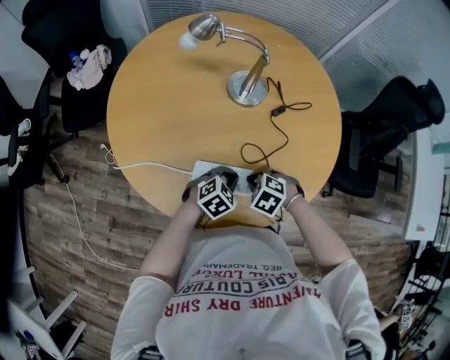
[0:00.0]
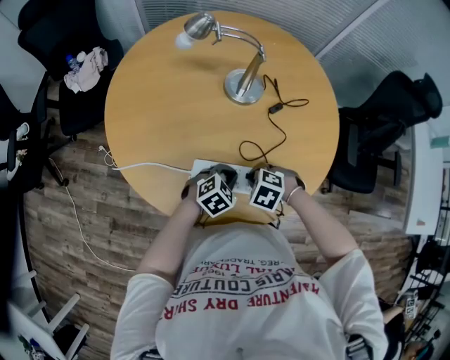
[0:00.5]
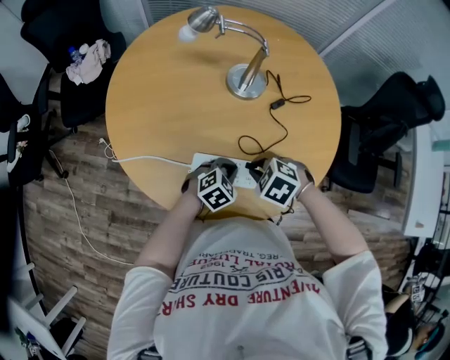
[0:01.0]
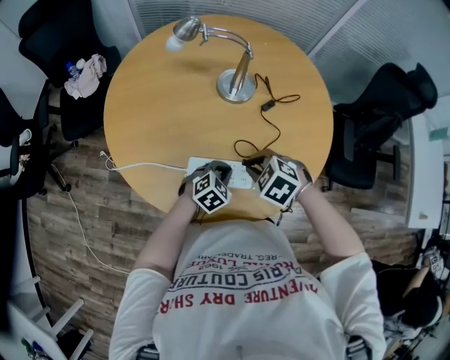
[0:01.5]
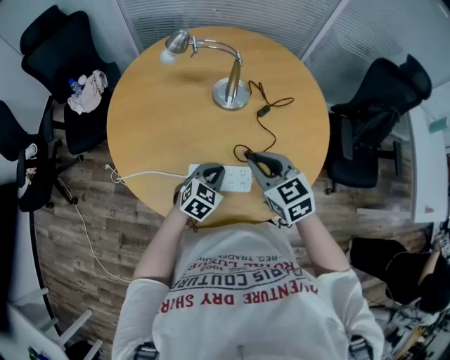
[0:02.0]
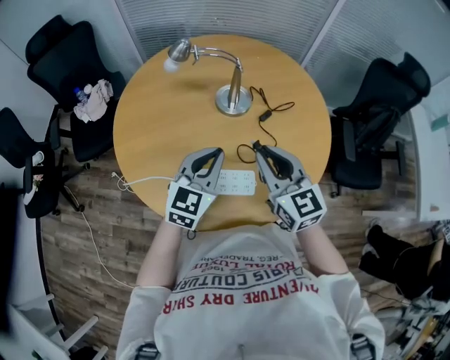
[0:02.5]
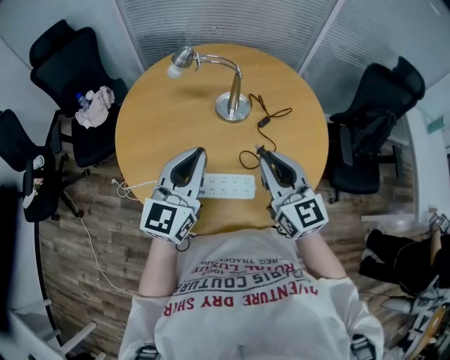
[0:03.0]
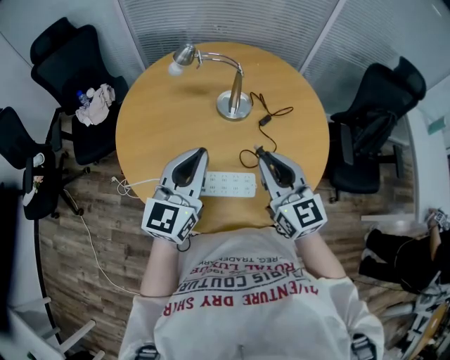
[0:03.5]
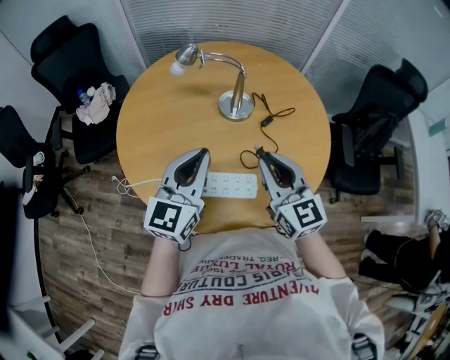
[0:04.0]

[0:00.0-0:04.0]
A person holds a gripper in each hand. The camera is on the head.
0:00.0 to 0:02.0: The right gripper is displaced upward by some 20 cm, and tips its fingers upward by about 40 degrees. The left gripper moves upward, approximately 5 cm.
0:02.0 to 0:04.0: The right gripper is displaced upward by approximately 10 cm, and turns by approximately 30 degrees, while the left gripper goes approximately 25 cm upward, and tilts its fingers approximately 40 degrees upward.

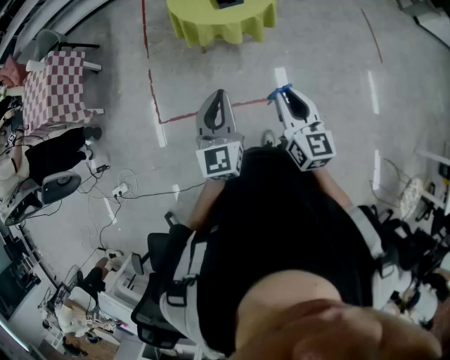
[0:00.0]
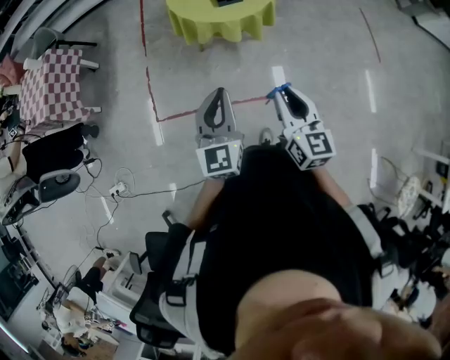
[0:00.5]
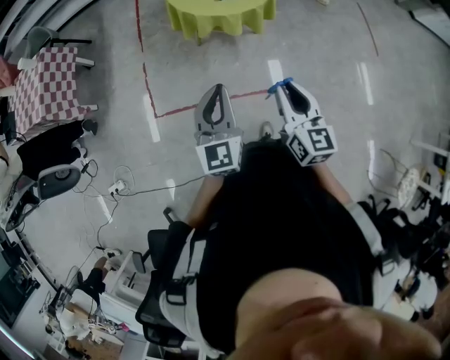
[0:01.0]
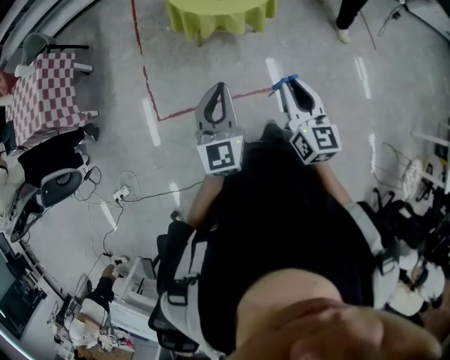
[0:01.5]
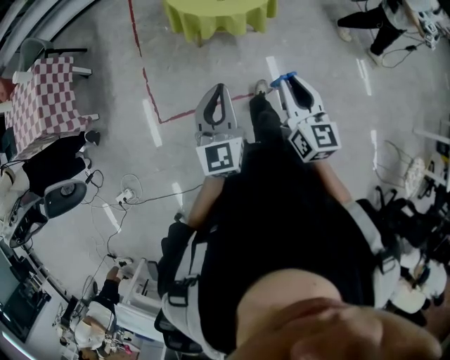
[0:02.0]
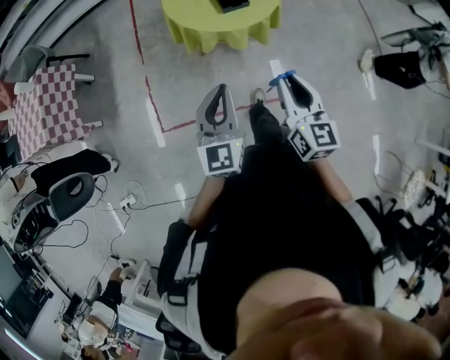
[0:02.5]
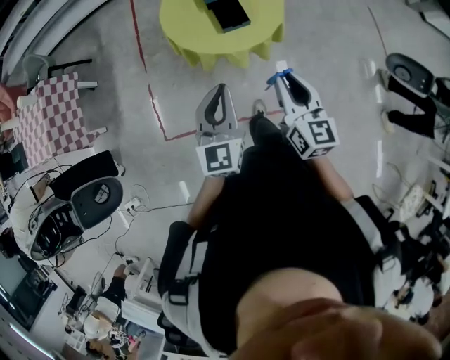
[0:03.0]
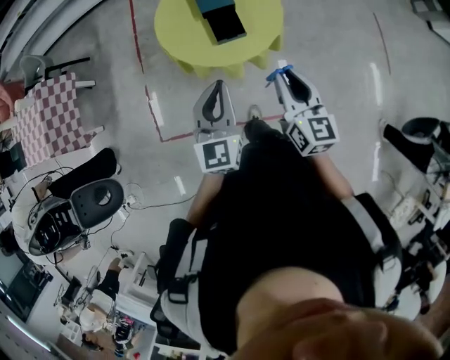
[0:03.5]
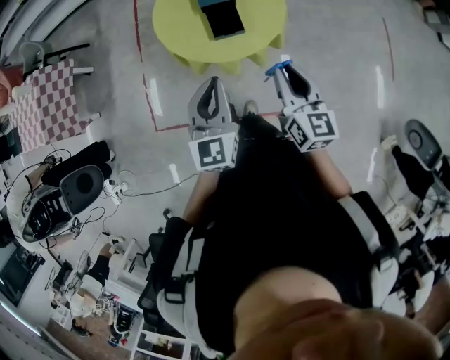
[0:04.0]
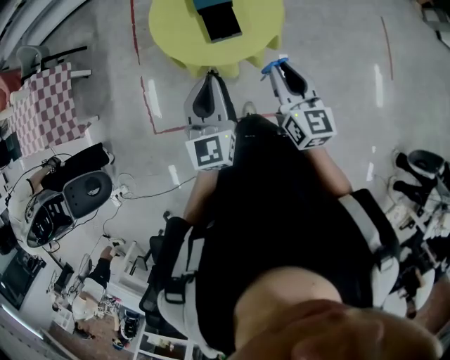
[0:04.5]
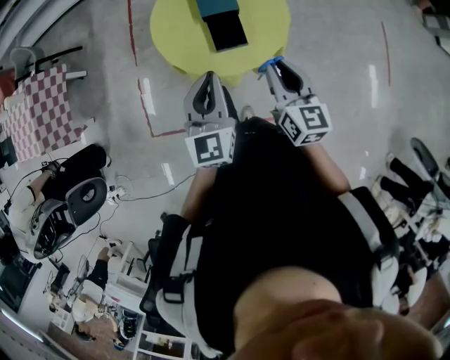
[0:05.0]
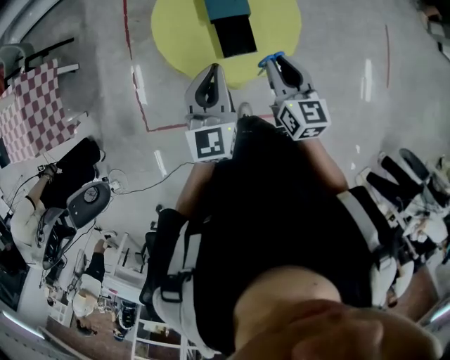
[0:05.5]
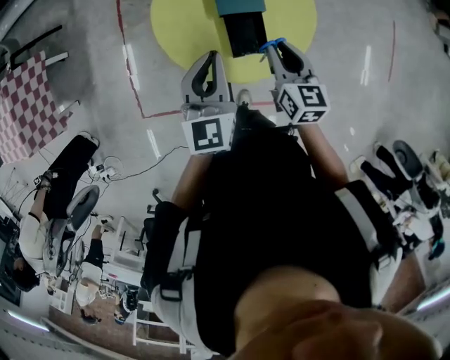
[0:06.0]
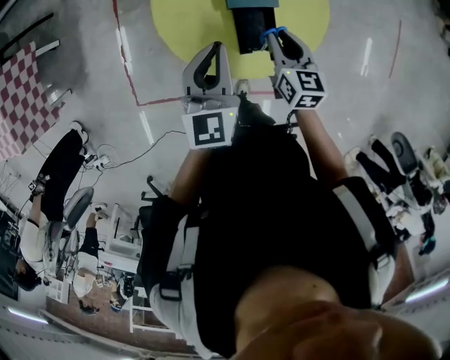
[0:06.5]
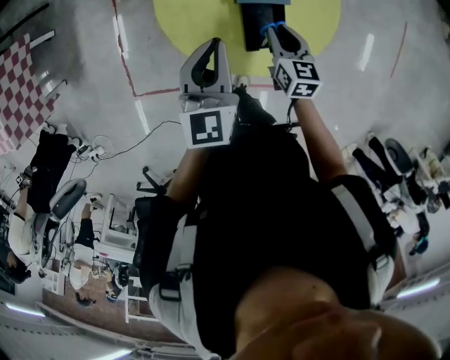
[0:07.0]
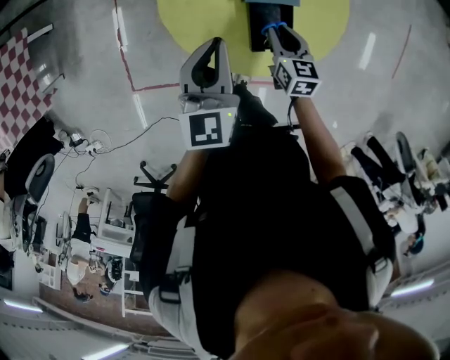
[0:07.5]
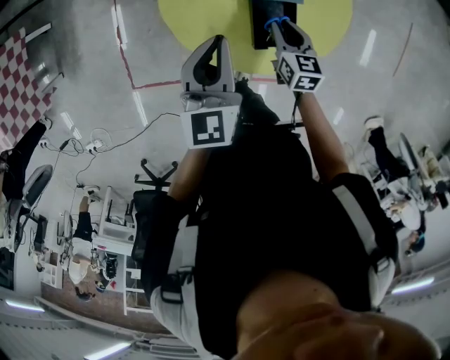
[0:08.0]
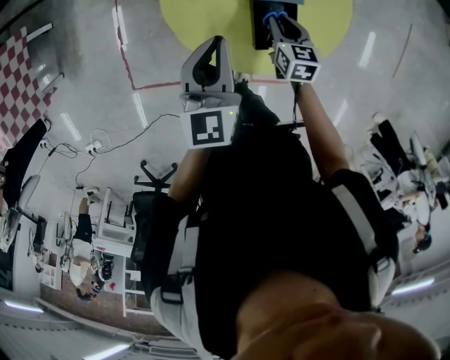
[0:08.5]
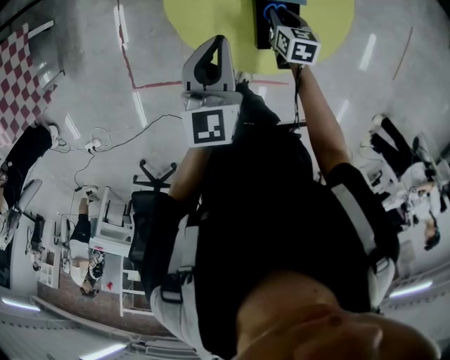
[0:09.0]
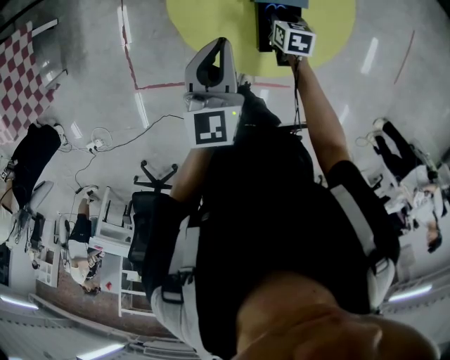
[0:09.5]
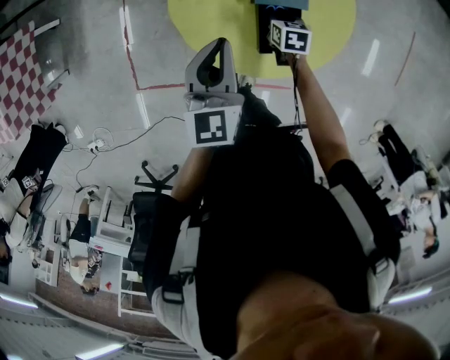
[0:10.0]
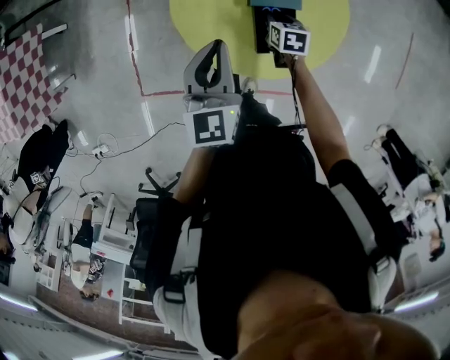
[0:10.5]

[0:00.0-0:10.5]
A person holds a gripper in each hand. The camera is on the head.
0:00.0 to 0:02.0: The grippers both shift to the left by roughly 10 cm.
0:02.0 to 0:04.0: The two grippers go roughly 40 cm forward and to the right.
0:04.0 to 0:06.5: The two grippers go approximately 35 cm forward and downward. The right gripper swivels approximately 20 degrees.
0:06.5 to 0:08.5: The left gripper shifts by approximately 5 cm. Meanwhile the right gripper is displaced downward by approximately 10 cm.
0:08.5 to 0:10.5: The right gripper shifts by about 5 cm.

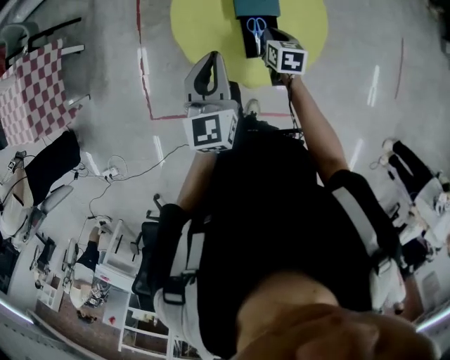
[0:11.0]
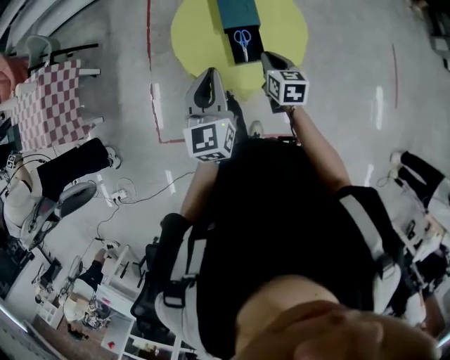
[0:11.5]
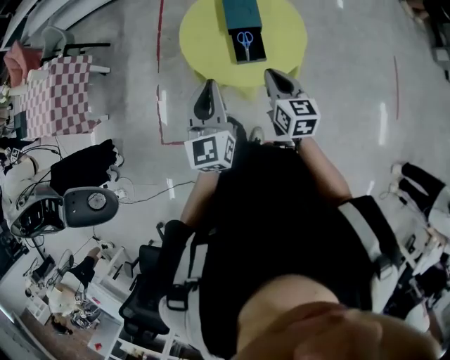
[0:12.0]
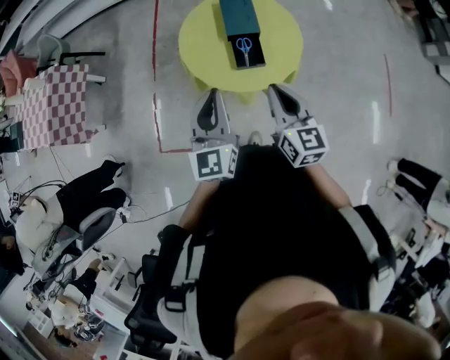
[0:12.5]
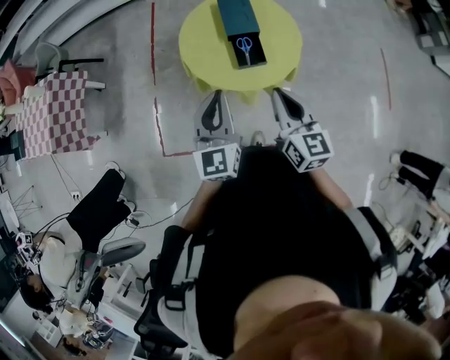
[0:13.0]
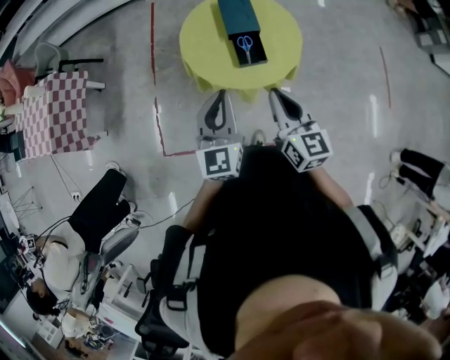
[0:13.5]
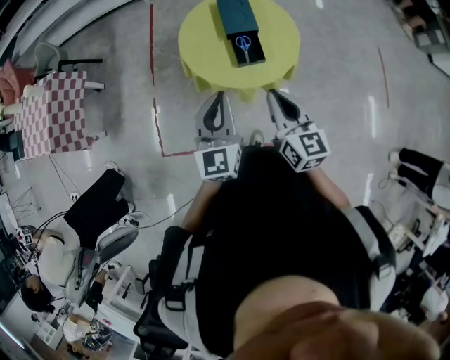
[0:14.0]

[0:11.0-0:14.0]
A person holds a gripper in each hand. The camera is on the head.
0:11.0 to 0:12.5: The right gripper is displaced upward and backward by approximately 40 cm, and tilts its fingers some 40 degrees upward; the left gripper travels backward and upward by about 25 cm.
0:12.5 to 0:14.0: The right gripper moves roughly 5 cm.

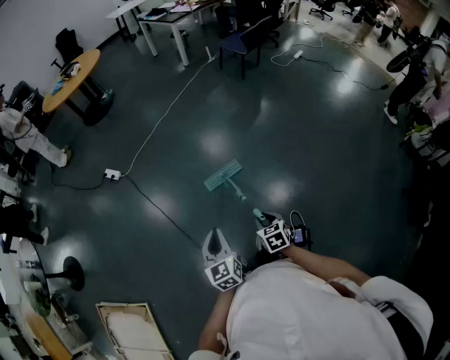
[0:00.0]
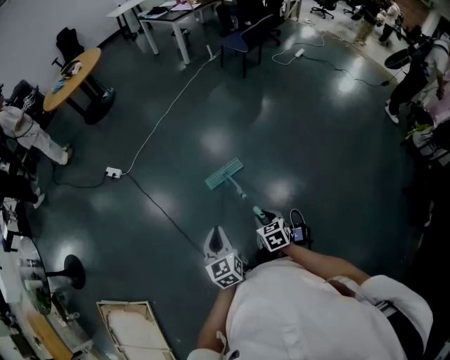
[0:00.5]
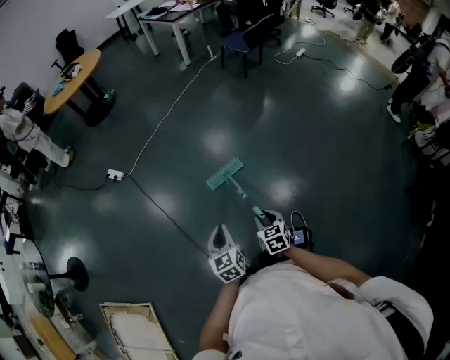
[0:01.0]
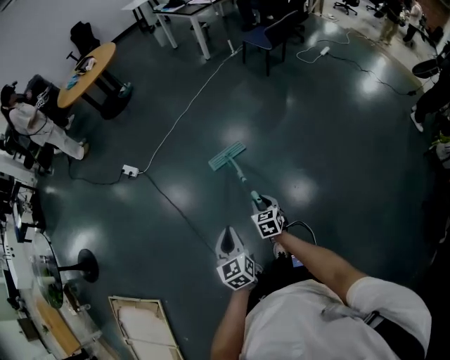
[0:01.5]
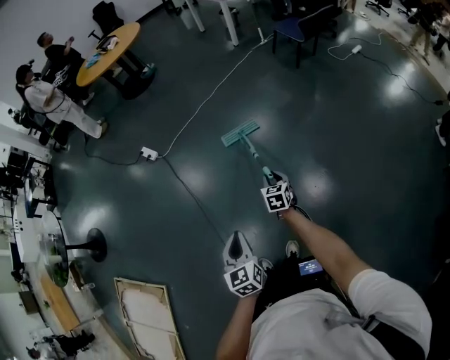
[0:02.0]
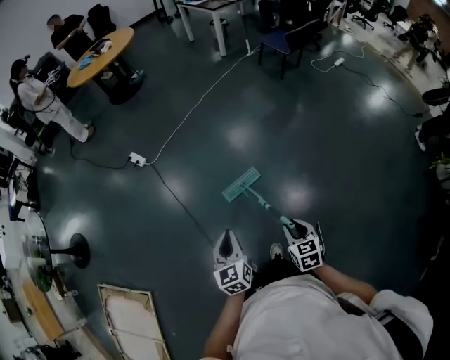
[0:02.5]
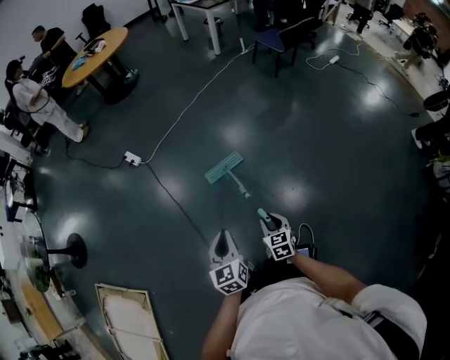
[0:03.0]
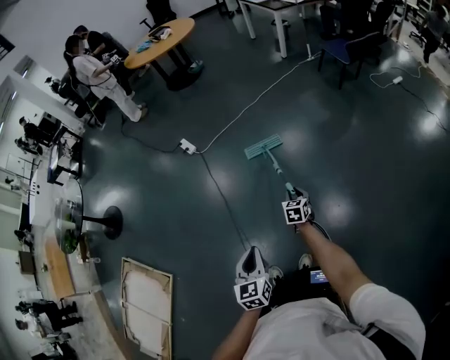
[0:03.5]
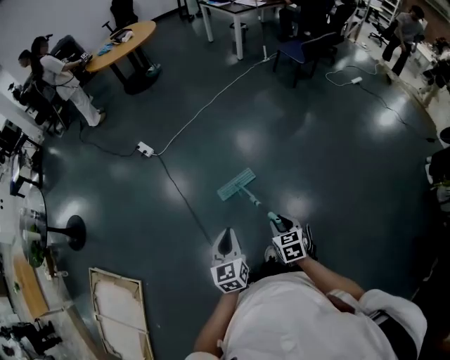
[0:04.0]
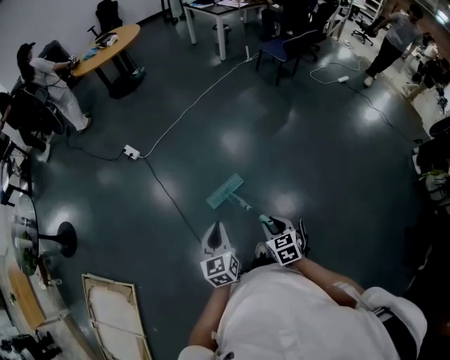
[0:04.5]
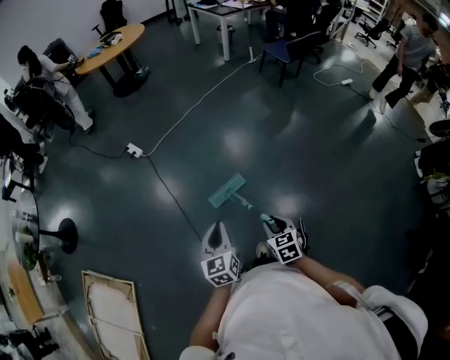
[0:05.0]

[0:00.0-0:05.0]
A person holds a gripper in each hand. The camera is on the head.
0:00.0 to 0:02.5: The left gripper moves forward, roughly 5 cm, while the right gripper heads upward, covering roughly 5 cm, and reaches about 30 cm forward, then returns.
0:02.5 to 0:05.0: The left gripper changes place by roughly 5 cm. The right gripper moves approximately 20 cm forward and comes back.

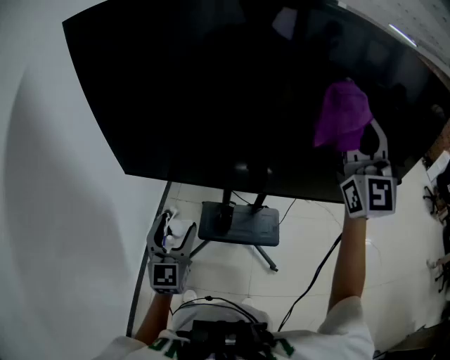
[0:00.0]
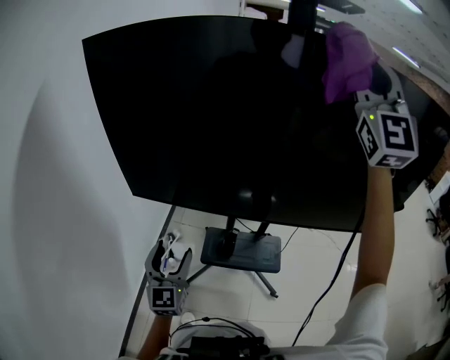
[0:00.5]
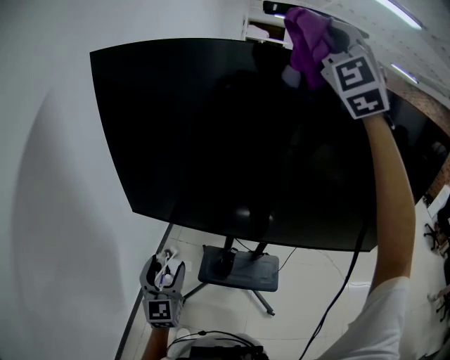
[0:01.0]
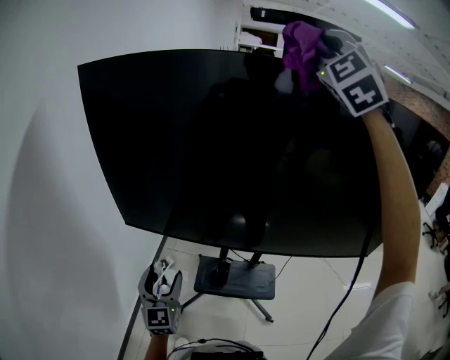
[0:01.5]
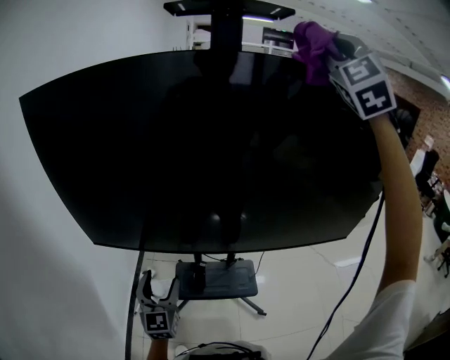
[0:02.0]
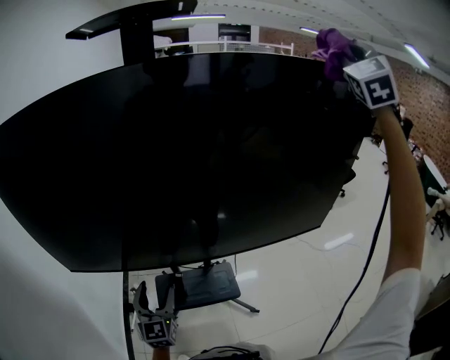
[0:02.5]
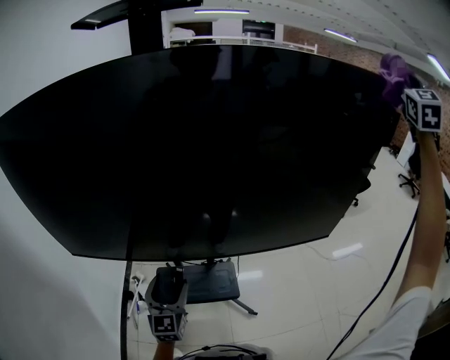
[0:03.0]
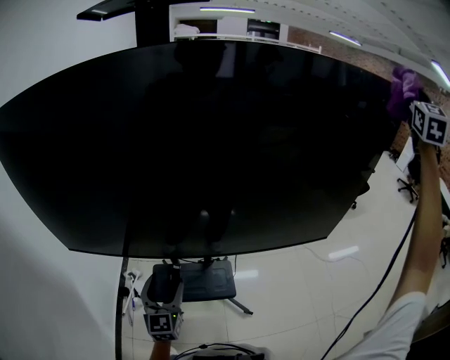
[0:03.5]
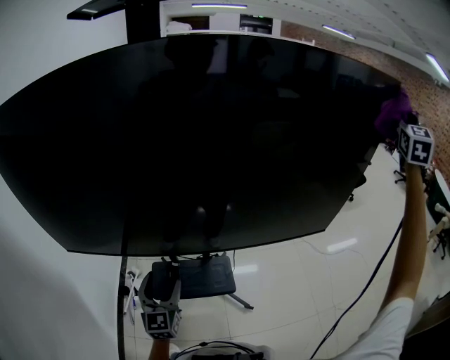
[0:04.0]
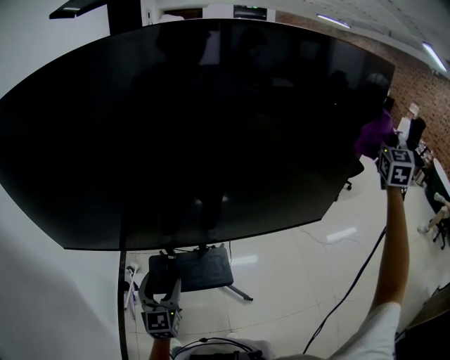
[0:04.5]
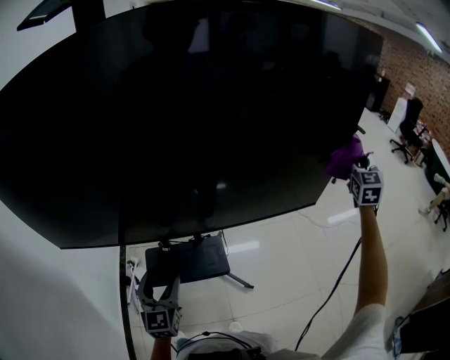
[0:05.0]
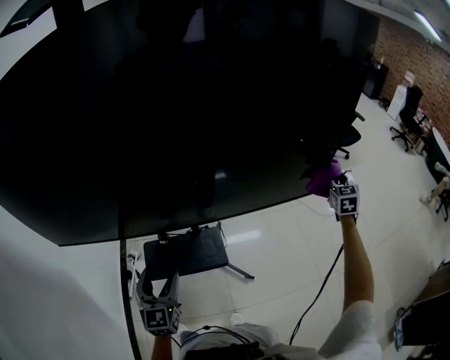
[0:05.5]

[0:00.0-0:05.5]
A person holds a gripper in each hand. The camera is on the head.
0:00.0 to 0:02.0: The left gripper goes about 10 cm forward and to the right, while the right gripper goes some 25 cm upward and forward, and changes its angle by roughly 40 degrees.
0:02.0 to 0:03.5: The left gripper heads to the right, covering about 15 cm, while the right gripper moves to the right, some 50 cm, and changes its angle by about 40 degrees.
0:03.5 to 0:05.5: The right gripper is displaced downward by about 60 cm, and tips its fingers downward by approximately 40 degrees. The left gripper heads to the right, covering about 5 cm.
